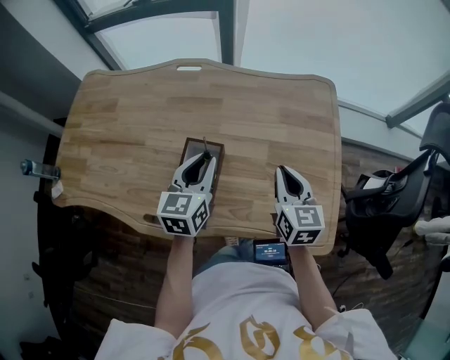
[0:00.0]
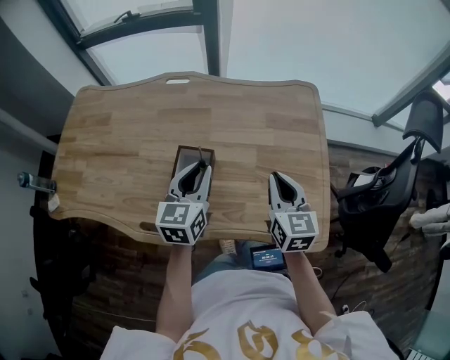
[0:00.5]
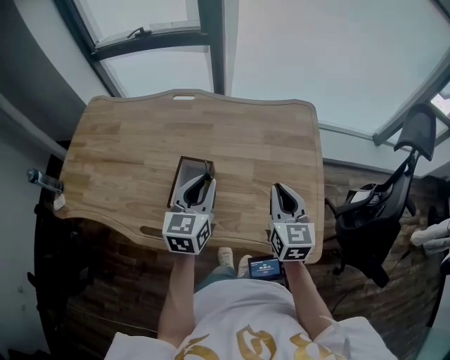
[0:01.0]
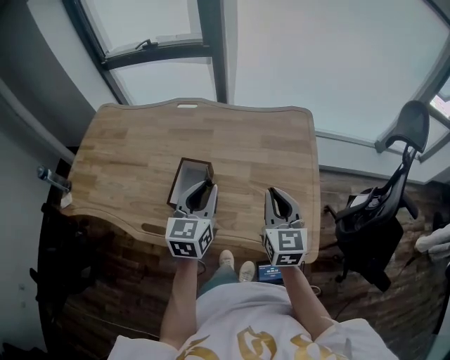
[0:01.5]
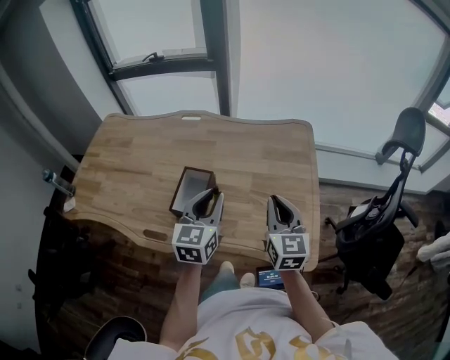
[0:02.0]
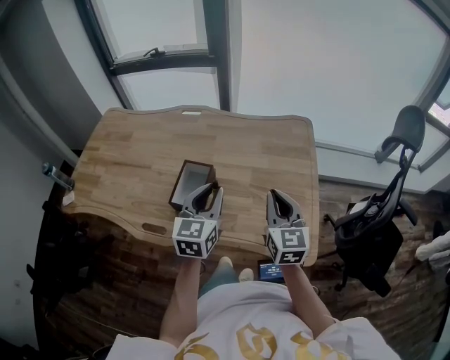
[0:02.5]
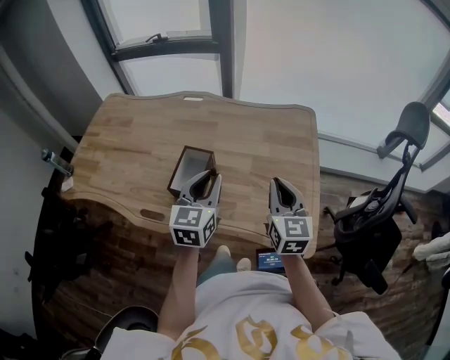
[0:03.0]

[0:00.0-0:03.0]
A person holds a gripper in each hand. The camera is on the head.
0:00.0 to 0:01.5: The left gripper shifts about 15 cm backward, to the right and upward, while the right gripper moves backward and upward, about 10 cm.
0:01.5 to 0:03.0: The grippers make only small movements.

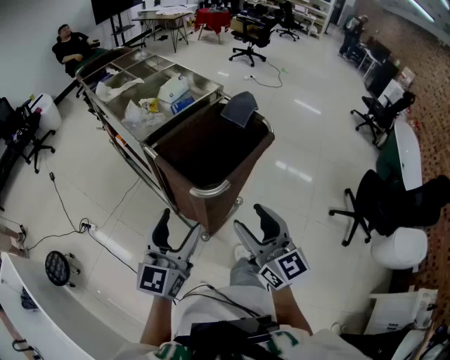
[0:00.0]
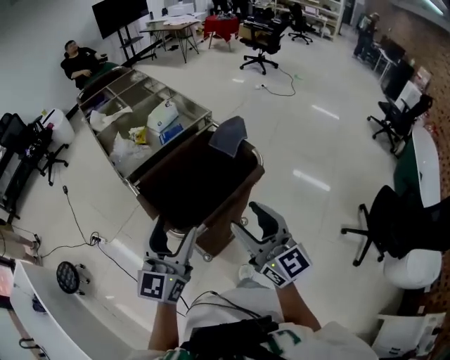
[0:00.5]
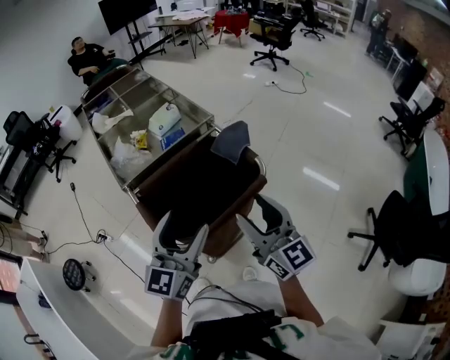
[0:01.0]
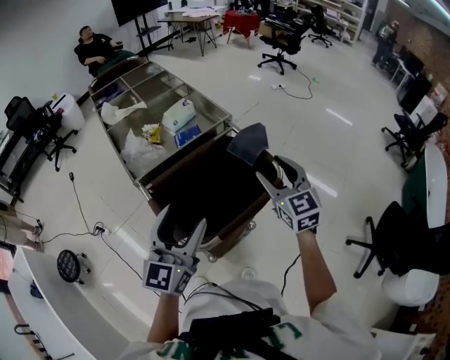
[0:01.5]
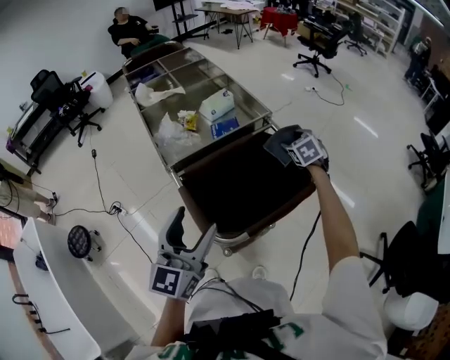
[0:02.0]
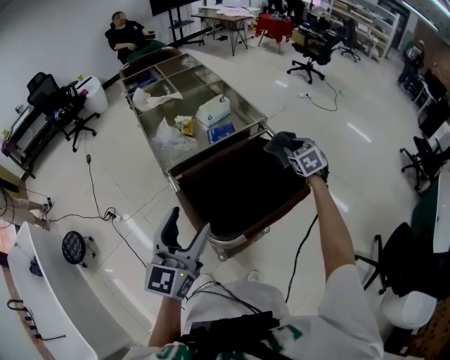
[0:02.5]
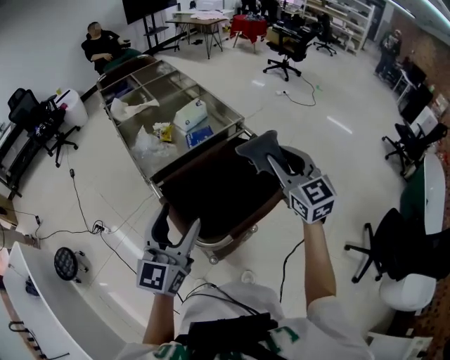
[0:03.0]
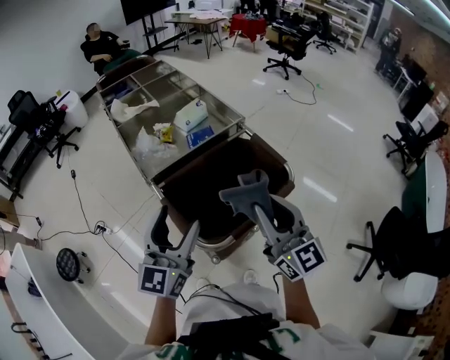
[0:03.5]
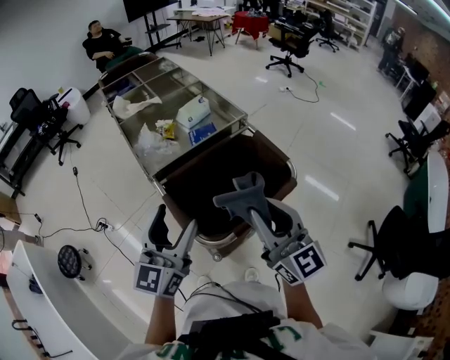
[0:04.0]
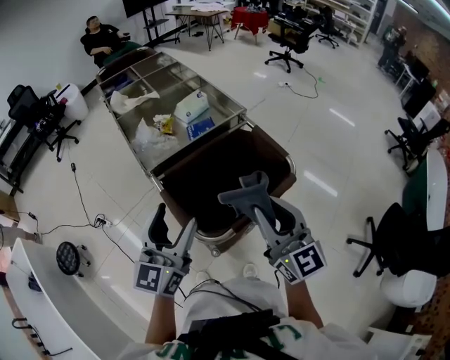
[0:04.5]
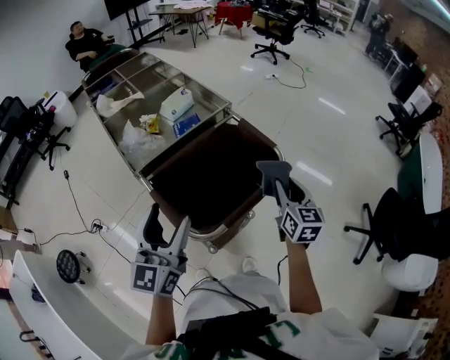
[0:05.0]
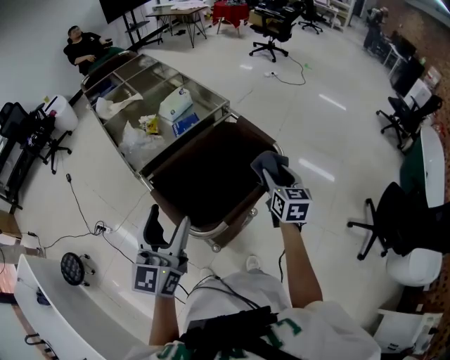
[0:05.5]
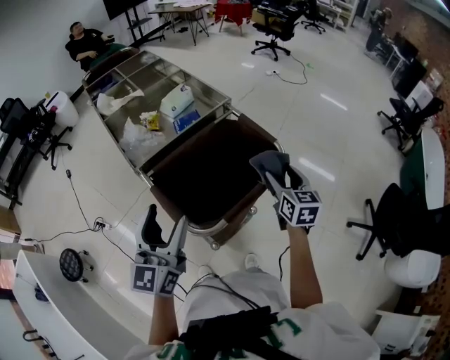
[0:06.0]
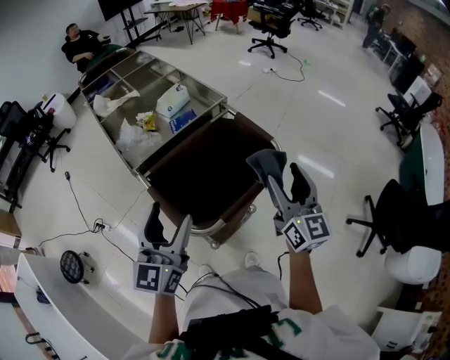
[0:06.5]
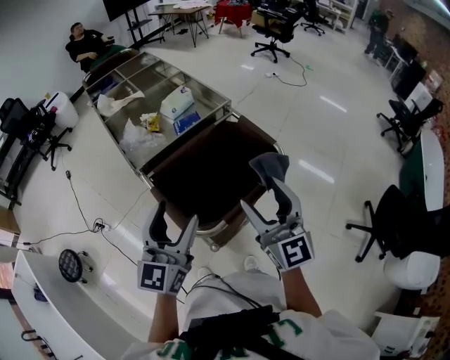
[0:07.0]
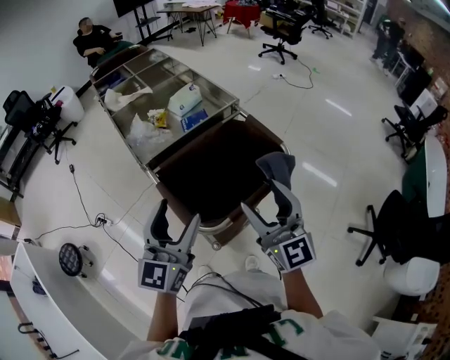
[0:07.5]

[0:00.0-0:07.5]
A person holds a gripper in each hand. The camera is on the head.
0:00.0 to 0:02.0: The right gripper moves forward, approximately 50 cm, and angles its fingers downward, by some 50 degrees. The left gripper shifts approximately 15 cm forward, and moves some 15 cm to the right and comes back.
0:02.0 to 0:04.0: The right gripper heads backward, upward and to the left, covering about 40 cm, tilts its fingers approximately 50 degrees upward, and closes up.
0:04.0 to 0:05.5: The right gripper goes roughly 25 cm downward, to the right and forward, and tips its fingers downward by roughly 30 degrees.
0:05.5 to 0:07.5: The right gripper moves upward, backward and to the left, approximately 20 cm, and tilts its fingers approximately 30 degrees upward.

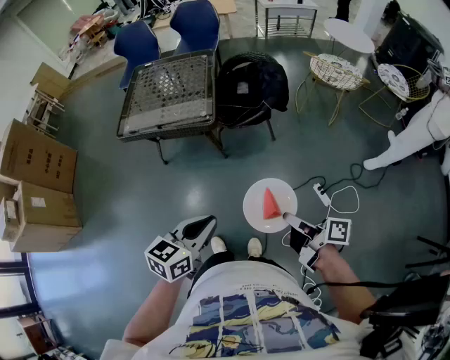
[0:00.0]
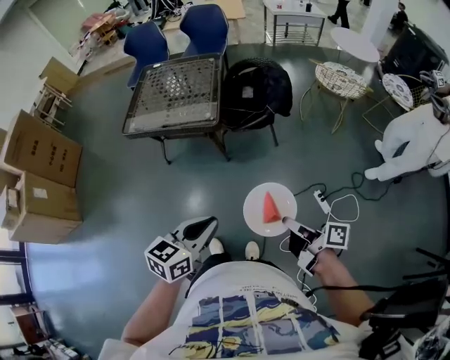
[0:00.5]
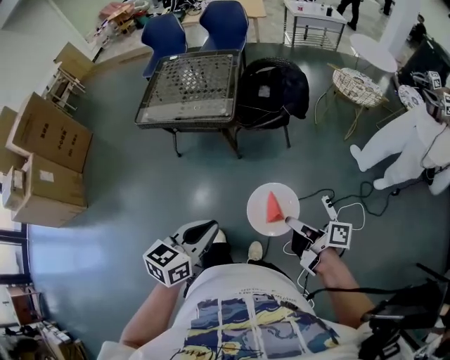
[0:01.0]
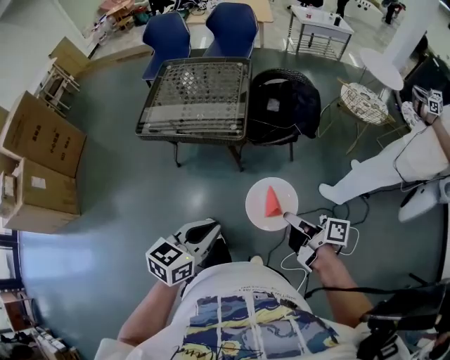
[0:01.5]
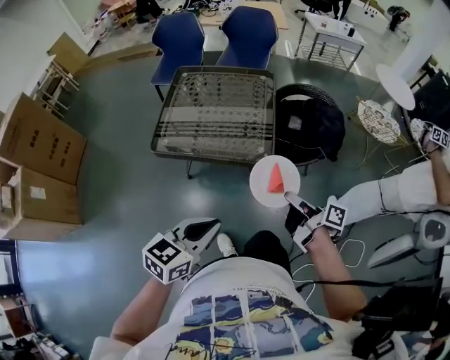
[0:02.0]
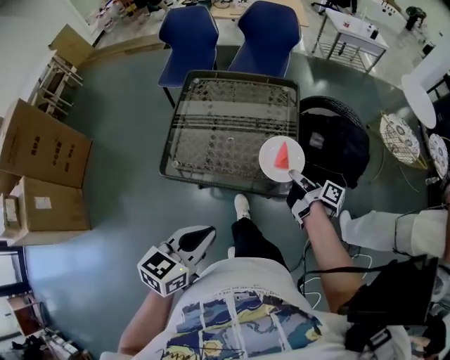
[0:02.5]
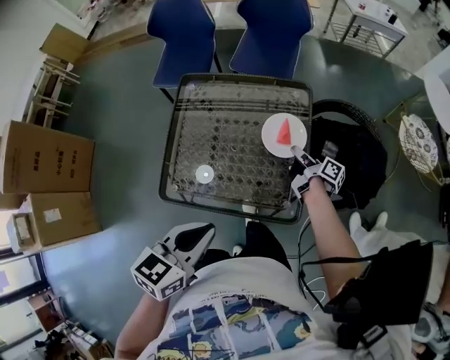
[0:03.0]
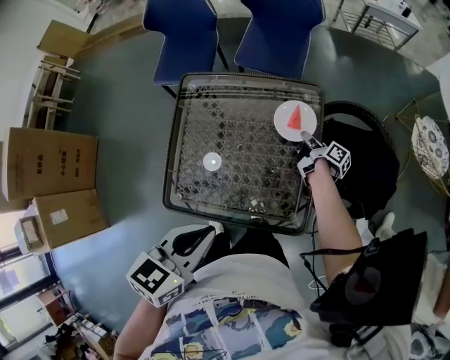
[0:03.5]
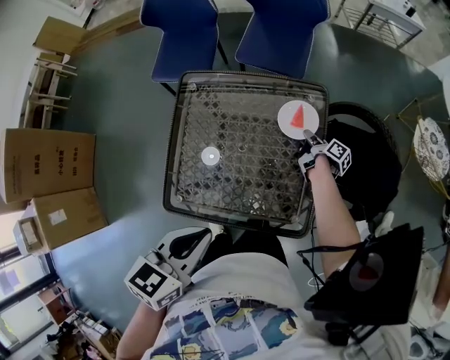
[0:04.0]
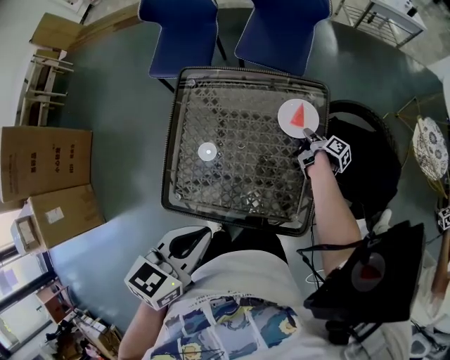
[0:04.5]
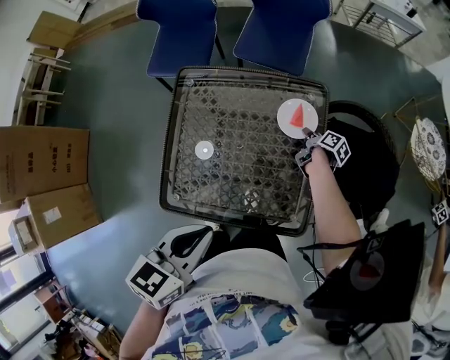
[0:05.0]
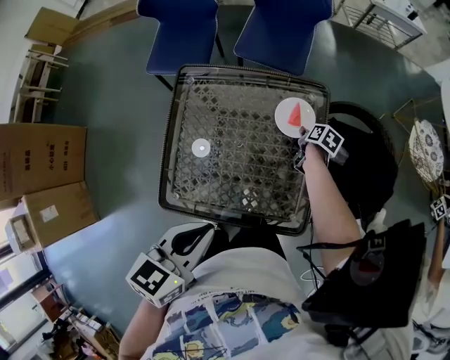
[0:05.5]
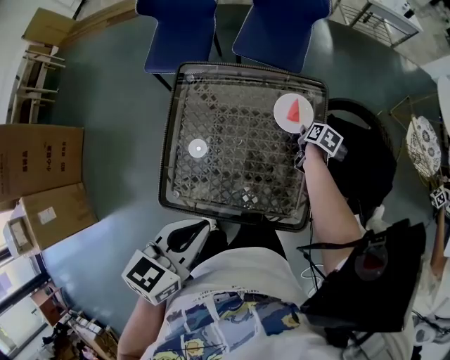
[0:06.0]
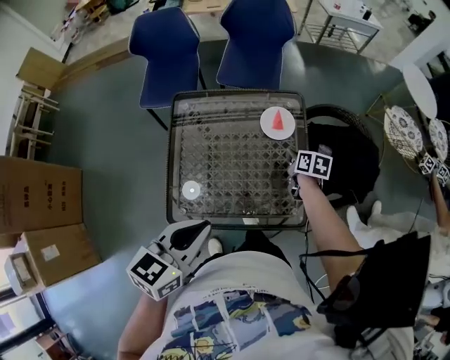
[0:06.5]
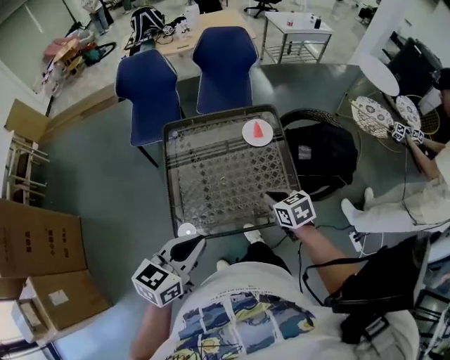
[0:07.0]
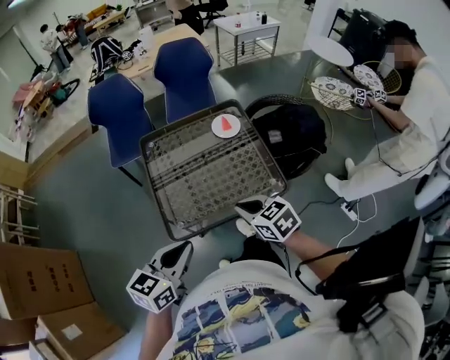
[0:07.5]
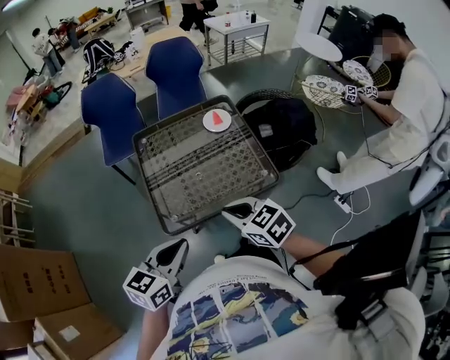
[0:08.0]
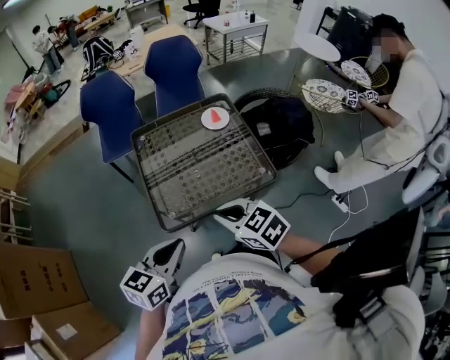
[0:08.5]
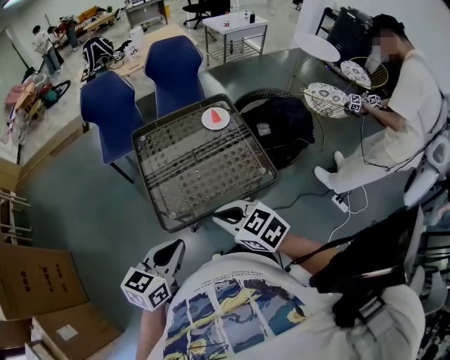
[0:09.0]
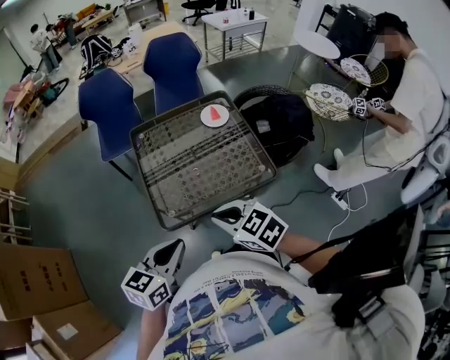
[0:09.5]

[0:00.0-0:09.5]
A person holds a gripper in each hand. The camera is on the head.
0:00.0 to 0:02.0: The left gripper heads to the left and forward, covering approximately 30 cm. The right gripper is displaced forward and to the left by roughly 35 cm.
0:02.0 to 0:04.0: The right gripper travels forward and downward by approximately 60 cm, and changes its angle by approximately 30 degrees; the left gripper shifts some 35 cm forward.
0:04.0 to 0:05.5: The right gripper tilts its fingers about 30 degrees downward, and opens its fingers.
0:05.5 to 0:07.5: The right gripper moves backward and upward, some 50 cm, twists about 50 degrees counterclockwise, seen from behind, and closes its fingers, while the left gripper heads backward and to the left, covering roughly 20 cm, and changes its angle by roughly 20 degrees.
0:07.5 to 0:09.5: The right gripper is displaced to the left and backward by about 10 cm.

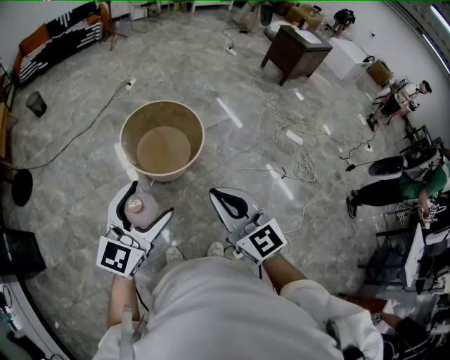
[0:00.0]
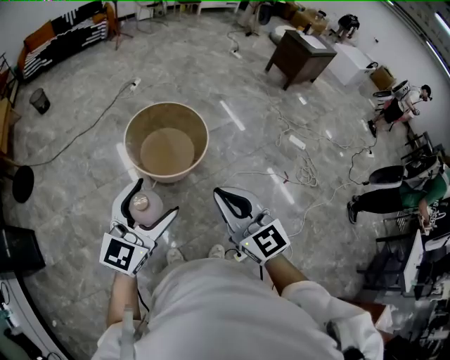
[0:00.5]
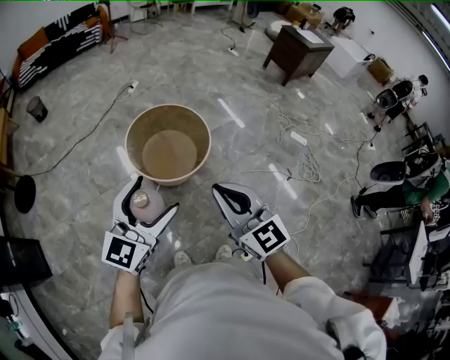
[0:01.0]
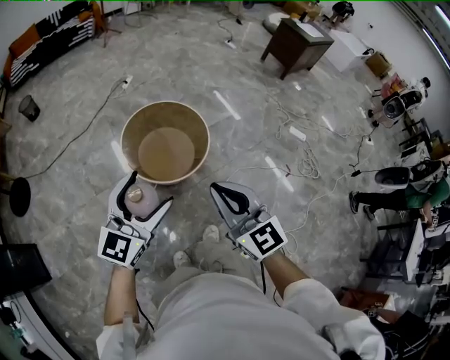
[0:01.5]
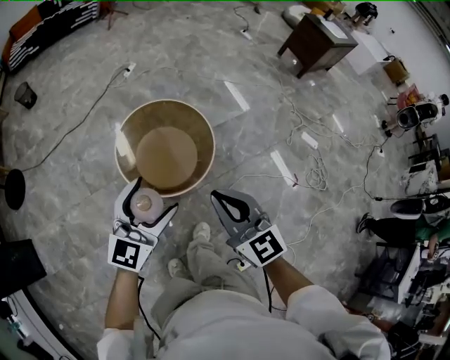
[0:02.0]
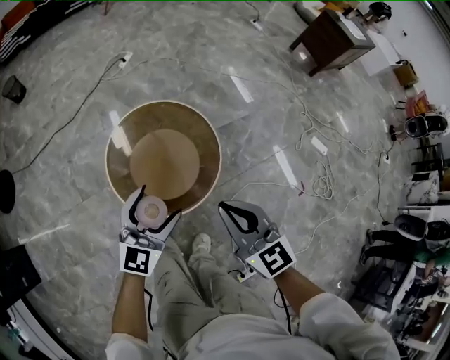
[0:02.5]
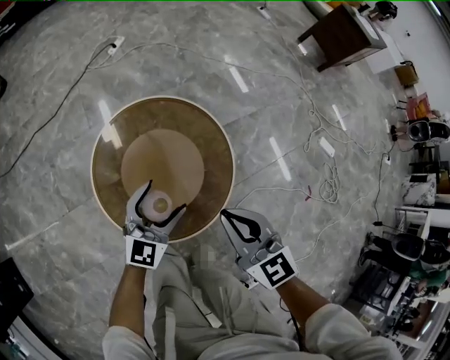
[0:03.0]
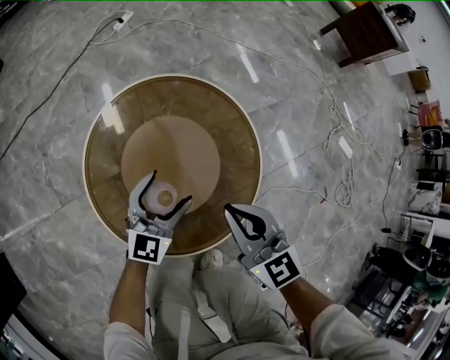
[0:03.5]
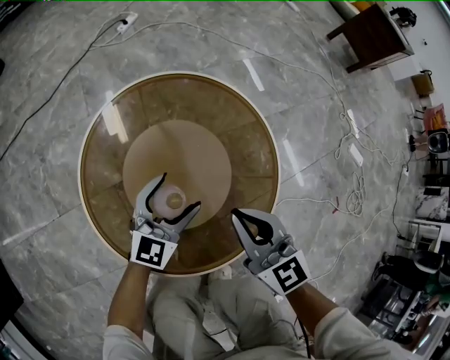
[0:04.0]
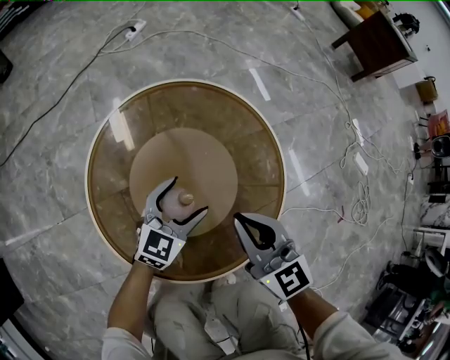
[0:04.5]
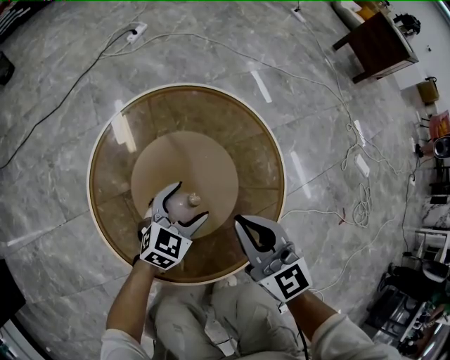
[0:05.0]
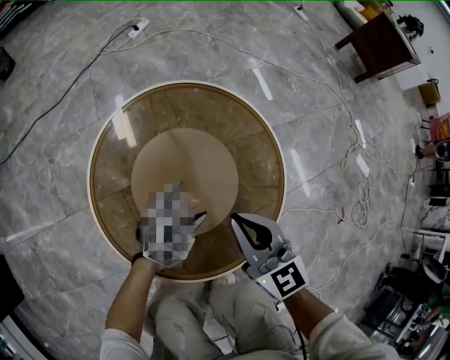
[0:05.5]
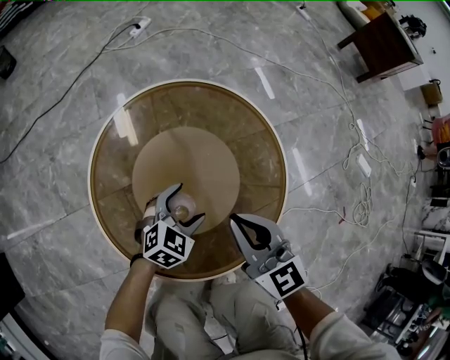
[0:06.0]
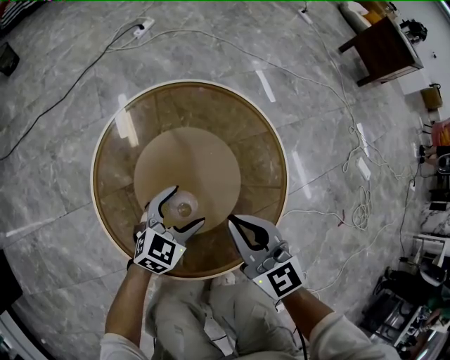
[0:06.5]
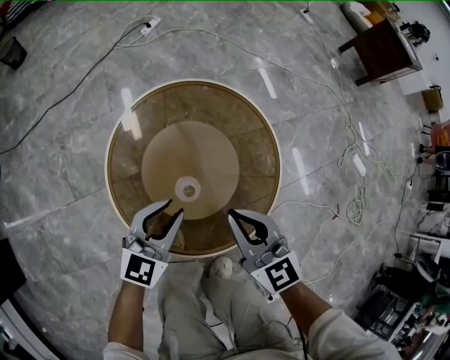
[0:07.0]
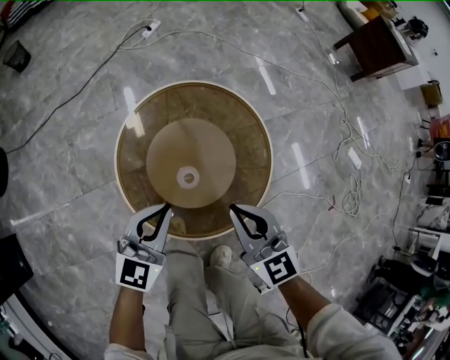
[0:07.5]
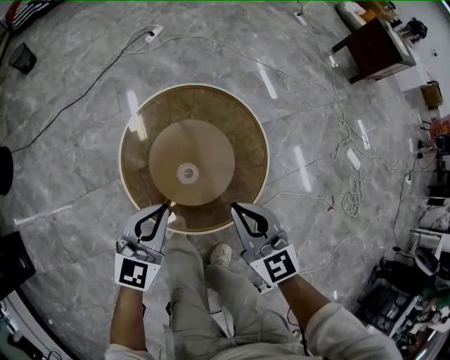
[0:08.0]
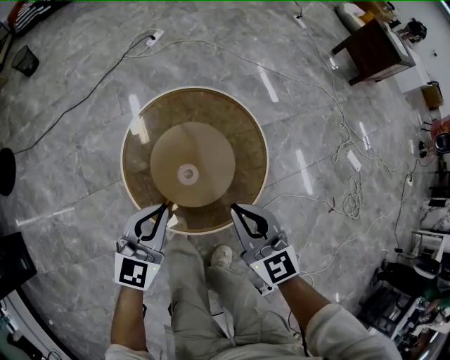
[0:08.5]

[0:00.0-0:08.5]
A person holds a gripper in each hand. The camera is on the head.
0:00.0 to 0:02.0: The left gripper travels forward and downward by some 30 cm. Meanwhile the right gripper shifts approximately 25 cm forward.
0:02.0 to 0:04.0: The grippers both shift downward and forward by approximately 60 cm.
0:04.0 to 0:06.5: The left gripper shifts by some 5 cm, and turns by approximately 20 degrees.
0:06.5 to 0:08.5: The right gripper is displaced upward by about 20 cm; the left gripper goes roughly 30 cm upward, rotates some 20 degrees, and closes up.
